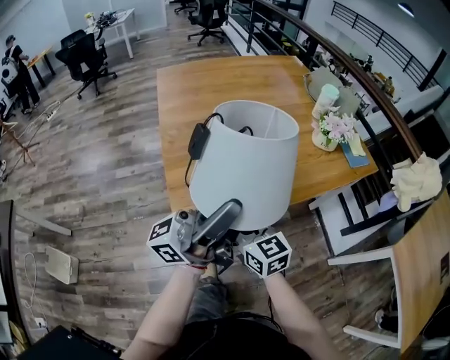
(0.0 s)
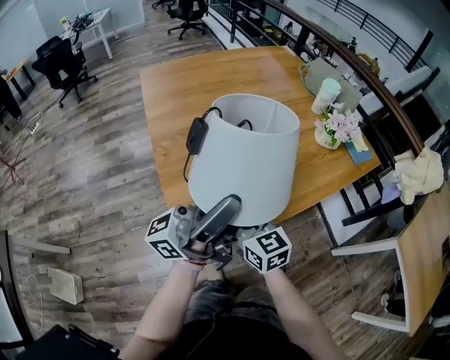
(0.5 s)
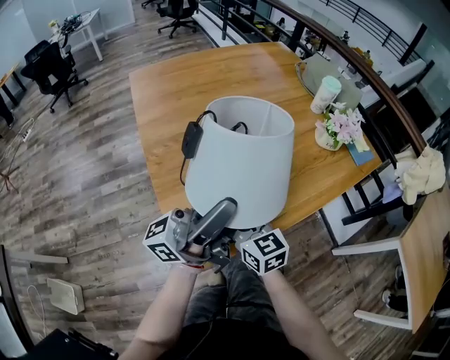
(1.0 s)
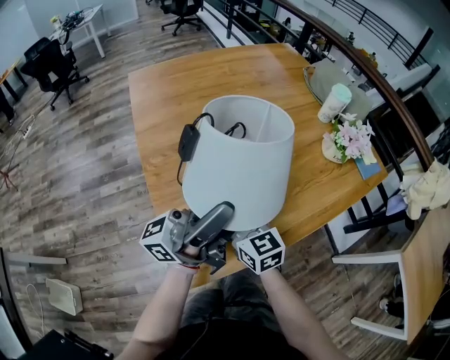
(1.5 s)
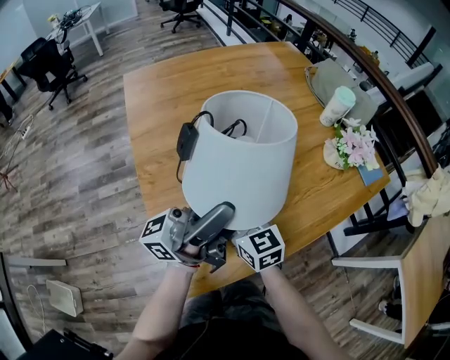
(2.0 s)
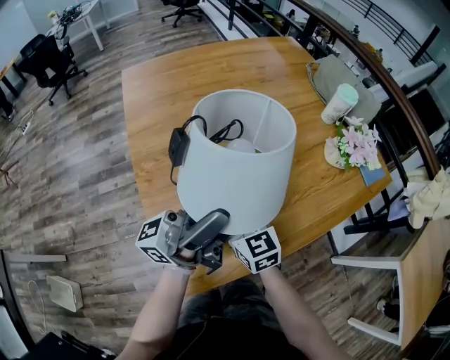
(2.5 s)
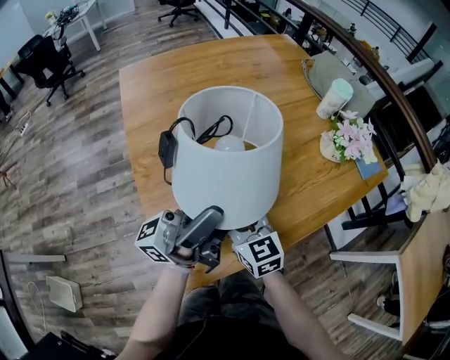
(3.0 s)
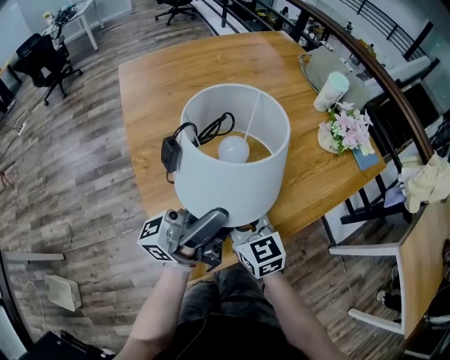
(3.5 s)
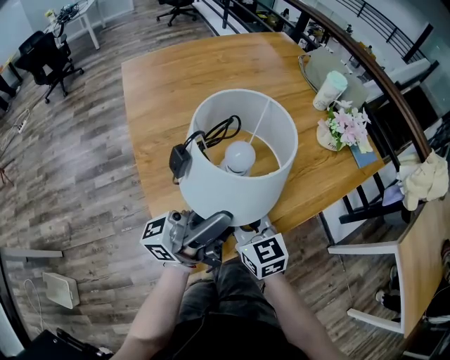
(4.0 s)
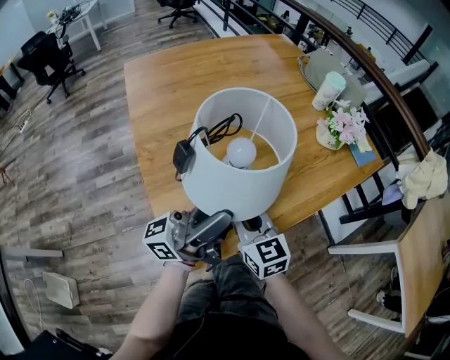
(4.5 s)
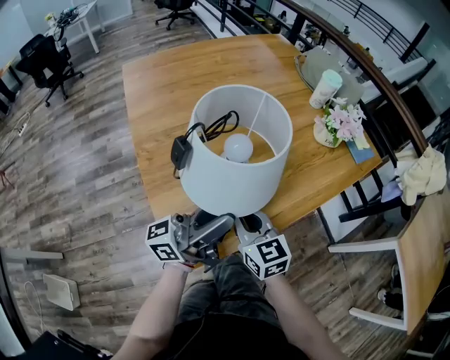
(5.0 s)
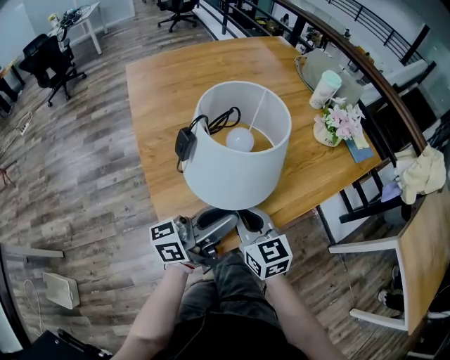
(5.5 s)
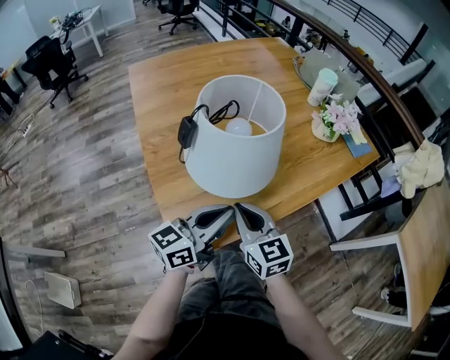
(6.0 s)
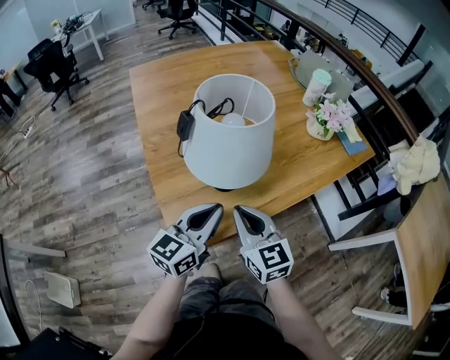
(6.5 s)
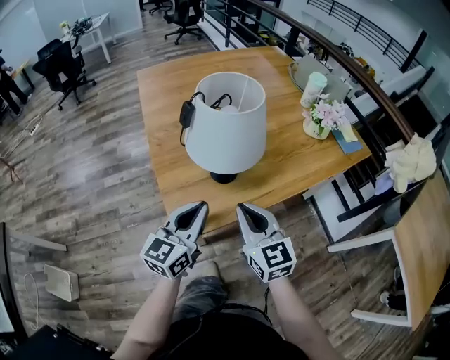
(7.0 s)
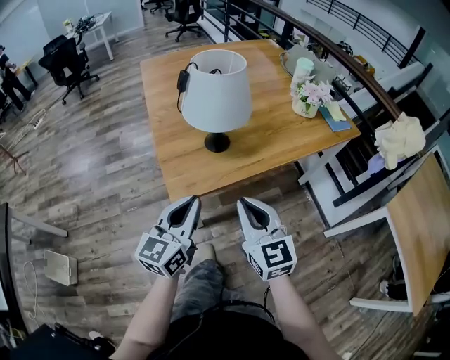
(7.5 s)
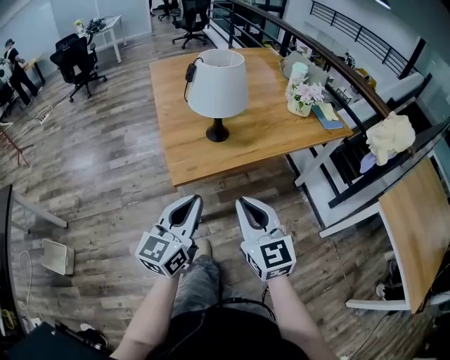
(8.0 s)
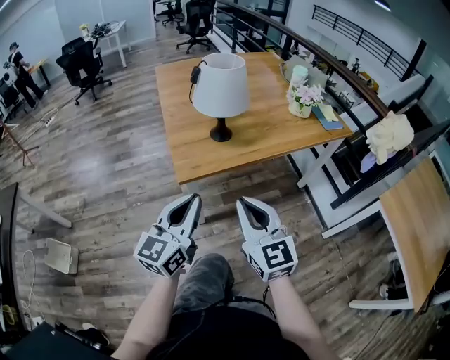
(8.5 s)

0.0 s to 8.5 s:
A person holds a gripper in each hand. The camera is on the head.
0.0 to 2.0 s: The right gripper is displaced forward by some 20 cm, while the left gripper heads forward and to the left, covering roughly 20 cm.
2.0 to 4.0 s: Both grippers move backward, about 5 cm.
4.0 to 6.5 s: The left gripper is displaced downward by some 10 cm, and angles its fingers downward, by approximately 50 degrees, while the right gripper heads backward, covering about 10 cm.
6.5 to 8.5 s: Both grippers travel together backward, about 25 cm. The left gripper swivels about 20 degrees.

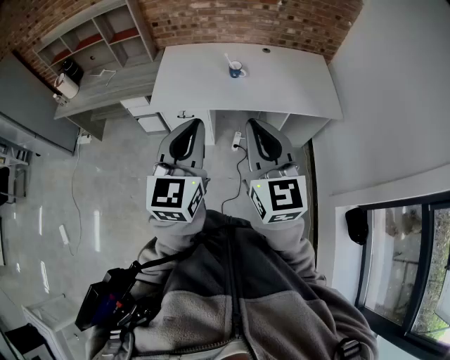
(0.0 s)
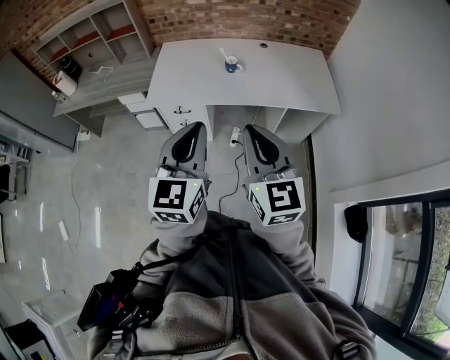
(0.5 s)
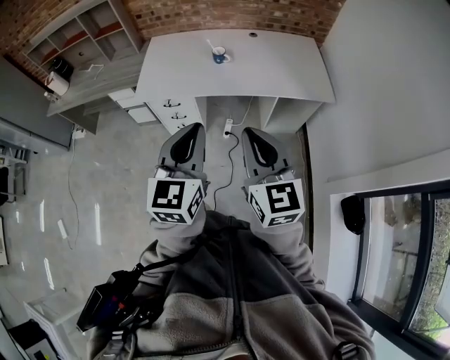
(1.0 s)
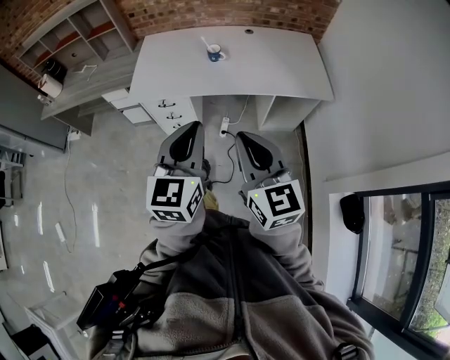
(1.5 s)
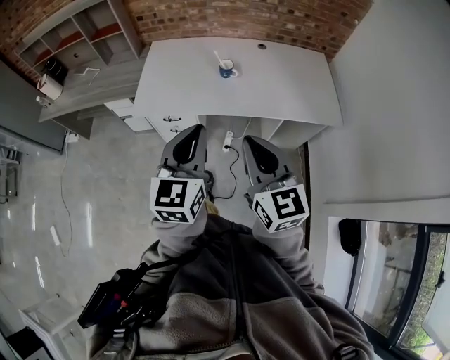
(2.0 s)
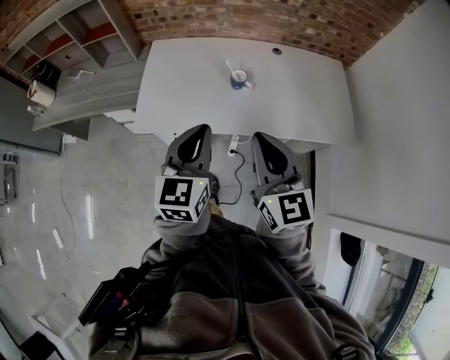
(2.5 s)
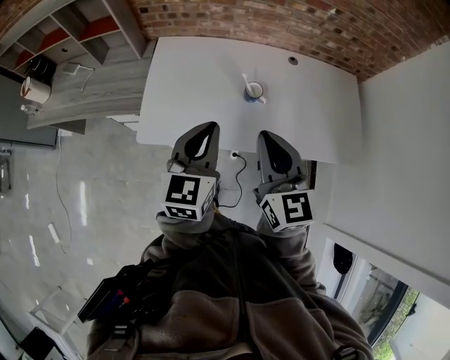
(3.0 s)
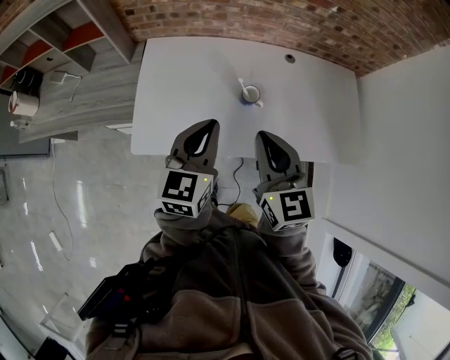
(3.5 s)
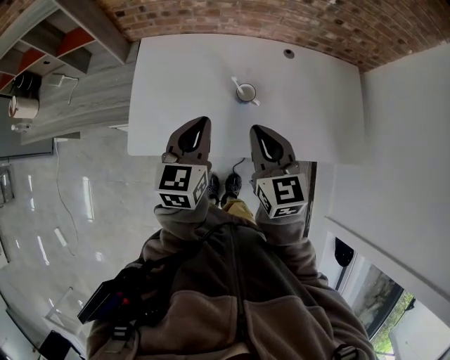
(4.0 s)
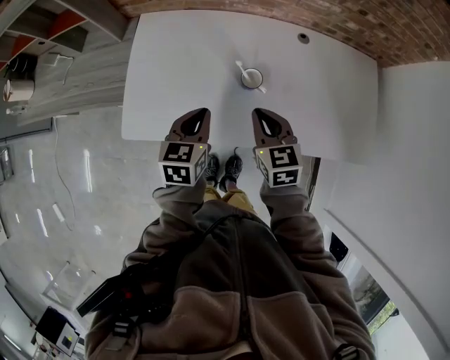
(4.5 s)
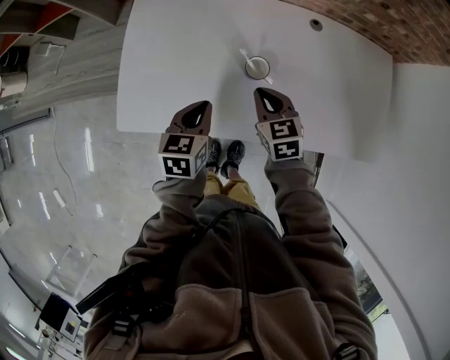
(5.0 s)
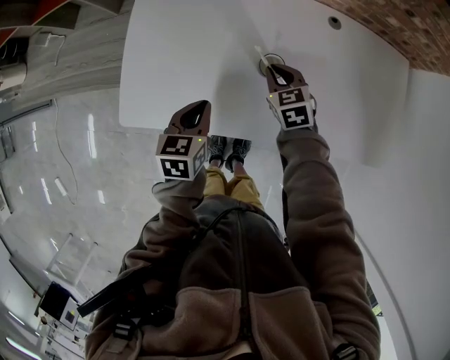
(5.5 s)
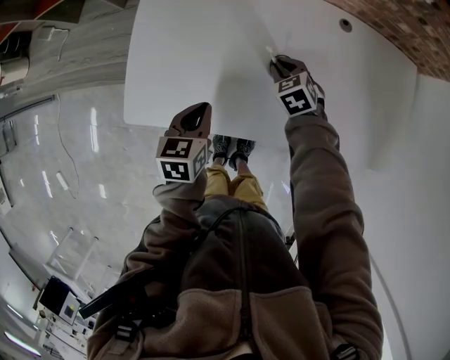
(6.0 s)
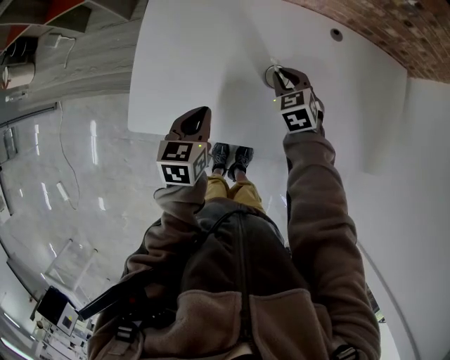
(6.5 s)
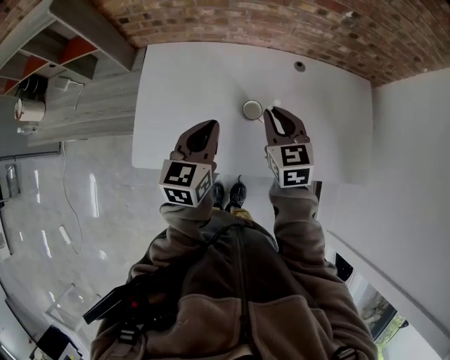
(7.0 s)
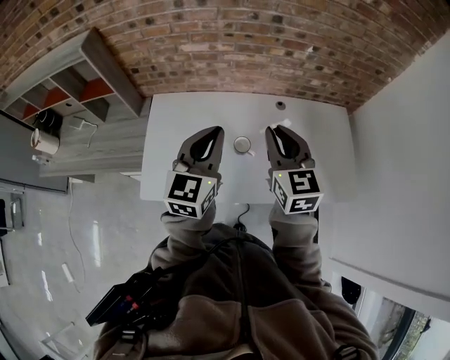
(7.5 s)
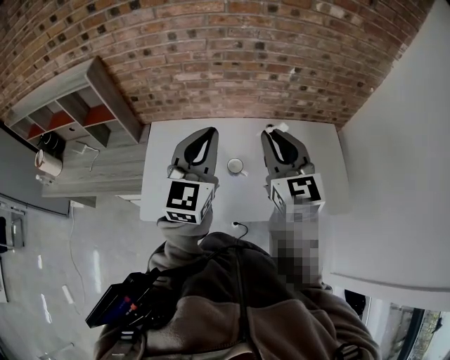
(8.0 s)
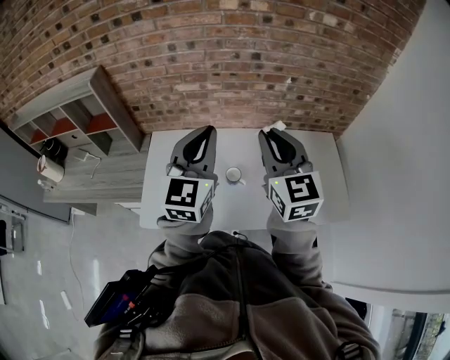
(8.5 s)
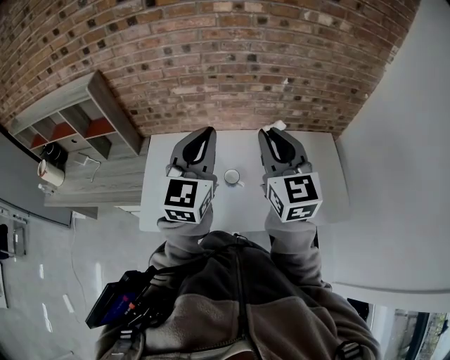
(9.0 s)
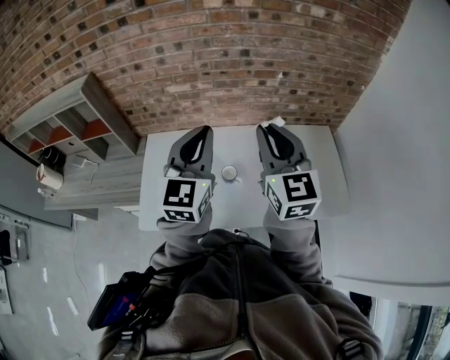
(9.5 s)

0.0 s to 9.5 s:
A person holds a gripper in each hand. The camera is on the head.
0.0 to 2.0 s: Both grippers travel together forward and downward, about 15 cm.
2.0 to 4.0 s: The two grippers go about 35 cm forward.
4.0 to 5.5 s: The left gripper is displaced downward by about 20 cm, and rotates roughly 30 degrees, while the right gripper travels downward and forward by approximately 30 cm, and changes its angle by approximately 30 degrees.
5.5 to 7.5 s: Both grippers travel together upward, roughly 35 cm. The left gripper angles its fingers upward, by approximately 40 degrees. The right gripper tips its fingers upward by some 40 degrees.
7.5 to 9.5 s: The two grippers go approximately 10 cm upward.

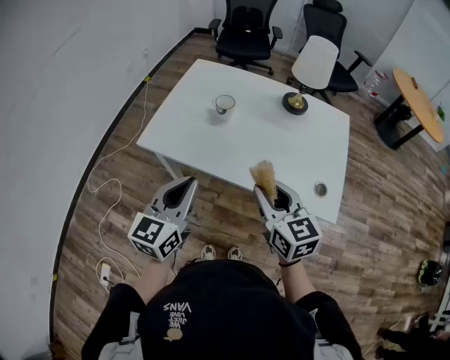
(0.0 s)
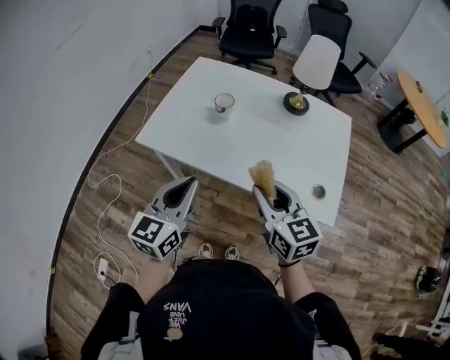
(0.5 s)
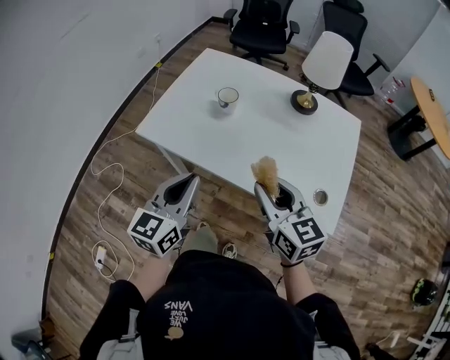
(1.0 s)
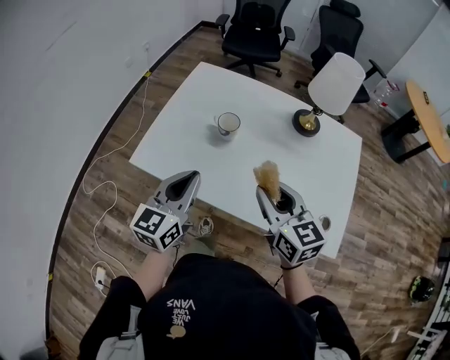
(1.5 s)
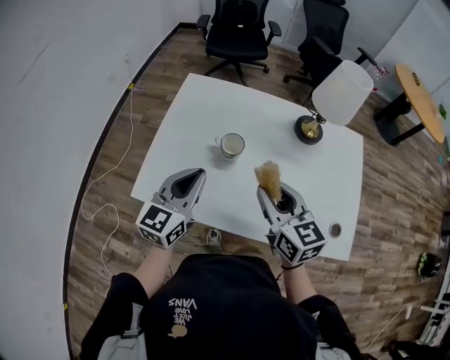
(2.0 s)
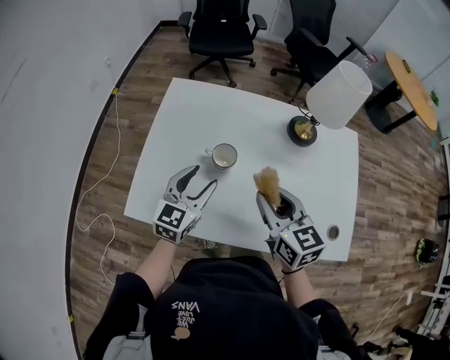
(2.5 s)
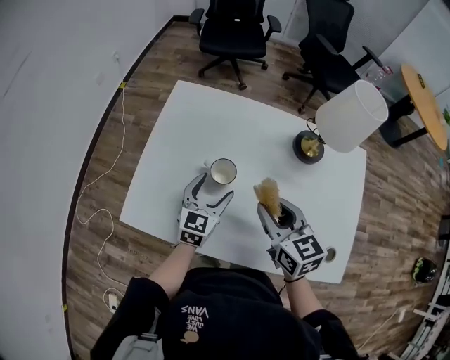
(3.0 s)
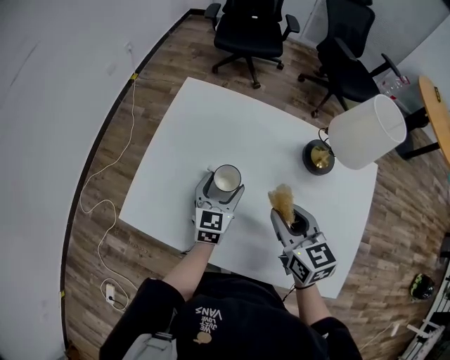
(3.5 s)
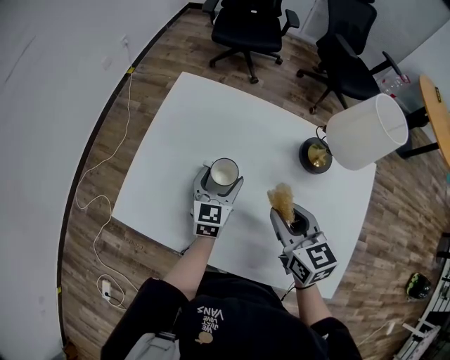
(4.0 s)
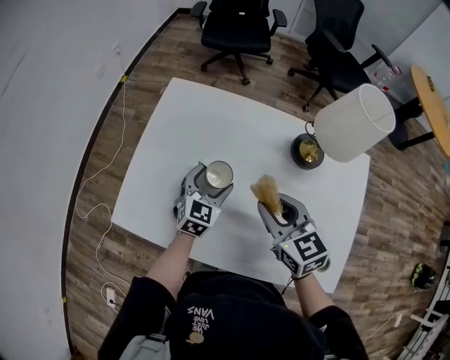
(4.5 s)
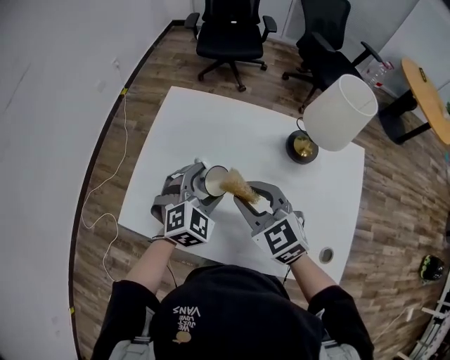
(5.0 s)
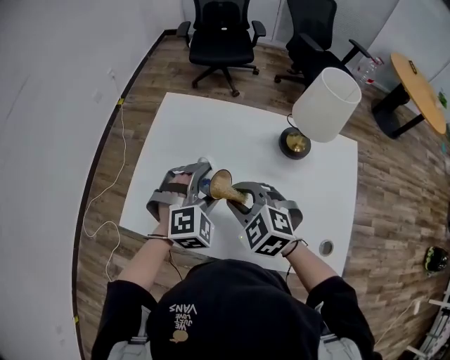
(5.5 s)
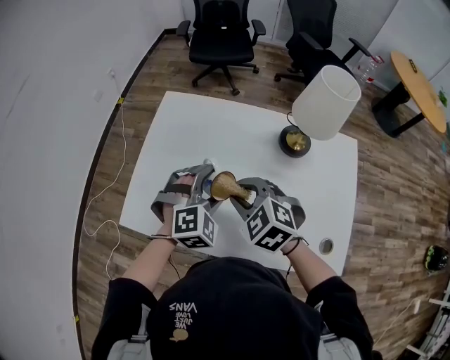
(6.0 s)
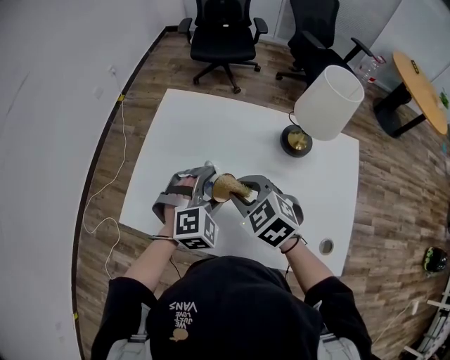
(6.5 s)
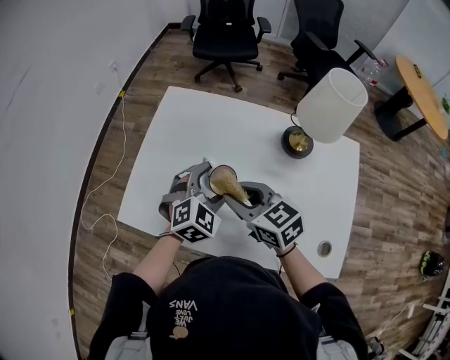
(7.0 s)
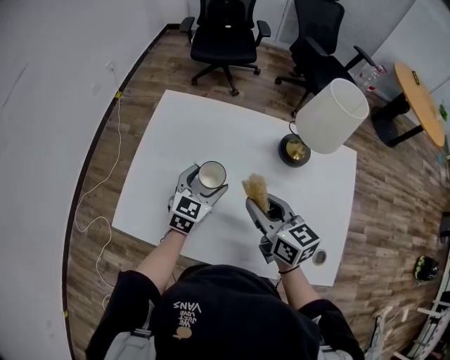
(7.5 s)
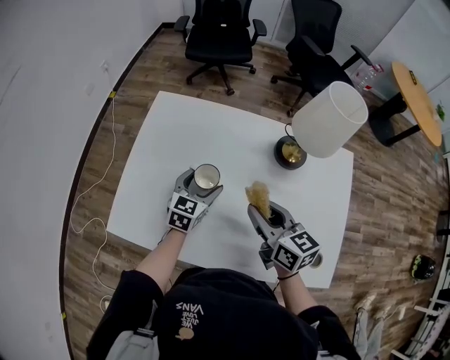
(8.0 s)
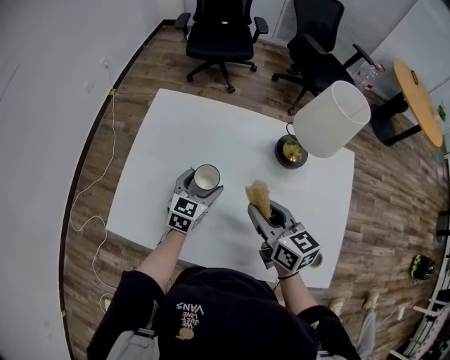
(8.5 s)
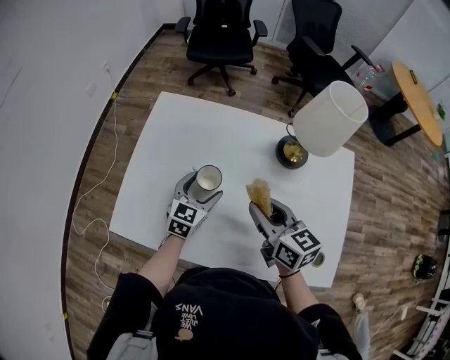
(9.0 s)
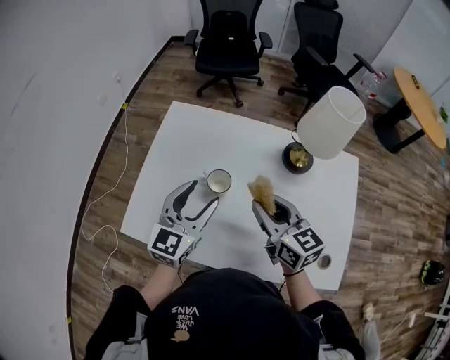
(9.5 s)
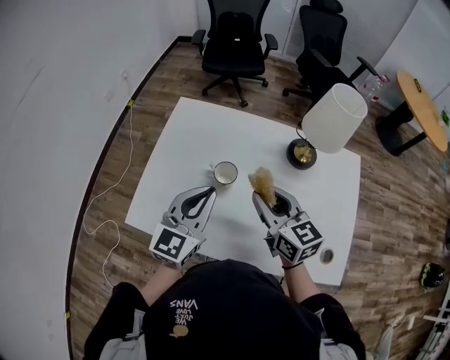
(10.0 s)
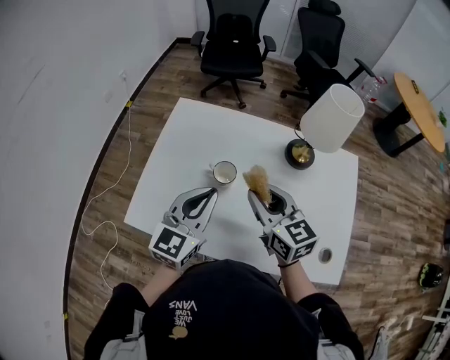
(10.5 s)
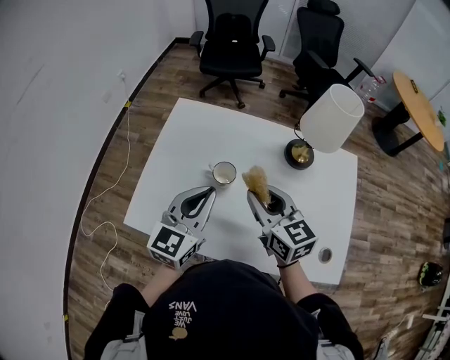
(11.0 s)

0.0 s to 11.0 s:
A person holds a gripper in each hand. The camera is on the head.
0.0 to 2.0 s: The two grippers go some 25 cm forward.
2.0 to 3.5 s: The right gripper goes some 15 cm forward, to the right and downward. Meanwhile the left gripper goes some 25 cm downward, forward and to the right, turns by some 20 degrees, and opens its fingers.
3.5 to 5.5 s: The left gripper is displaced upward and backward by about 15 cm, and rotates around the line of its fingers by about 60 degrees, clockwise from behind, while the right gripper shifts roughly 10 cm to the left, and rolls counterclockwise, seen from behind, by roughly 40 degrees.
5.5 to 7.5 s: The left gripper is displaced downward and forward by about 10 cm, and twists approximately 50 degrees counterclockwise, seen from behind, while the right gripper shifts some 5 cm to the right, and twists approximately 50 degrees clockwise, seen from behind.
7.5 to 9.0 s: The grippers stay close to where they were, moving slightly.
9.0 to 11.0 s: The right gripper is displaced upward and to the left by about 5 cm. The left gripper moves upward and backward, roughly 20 cm, and closes.
